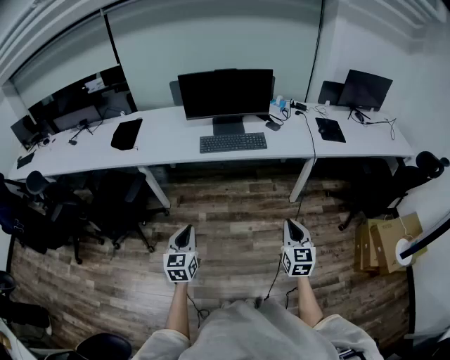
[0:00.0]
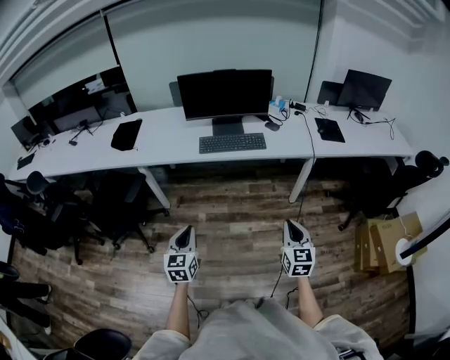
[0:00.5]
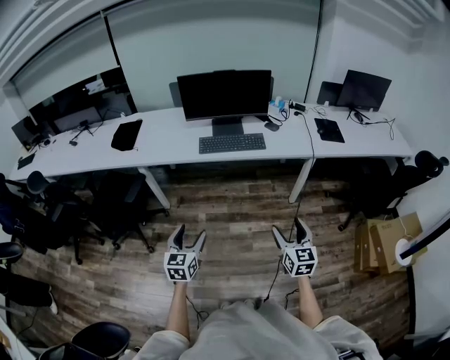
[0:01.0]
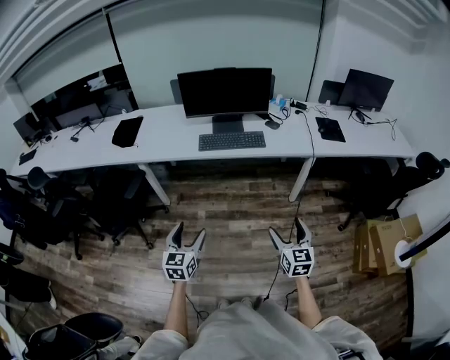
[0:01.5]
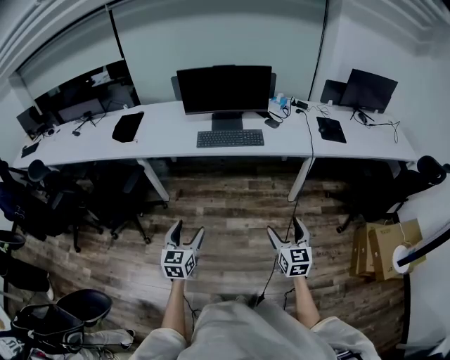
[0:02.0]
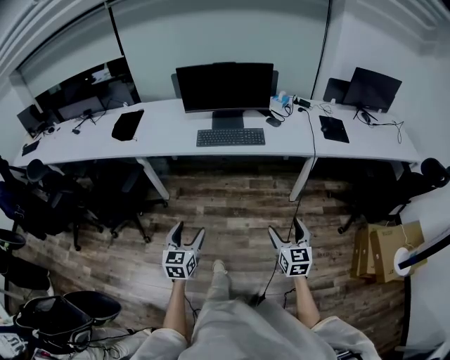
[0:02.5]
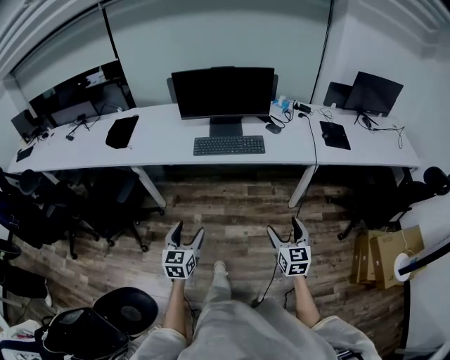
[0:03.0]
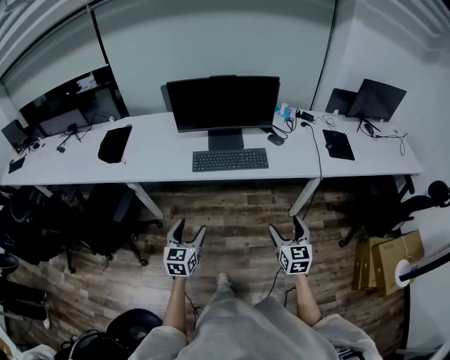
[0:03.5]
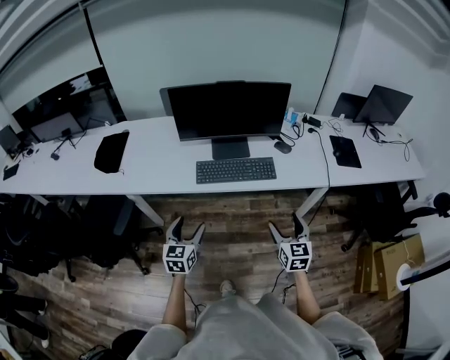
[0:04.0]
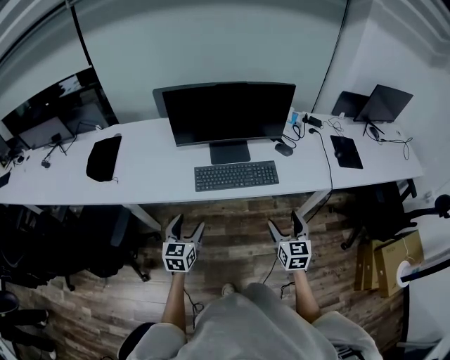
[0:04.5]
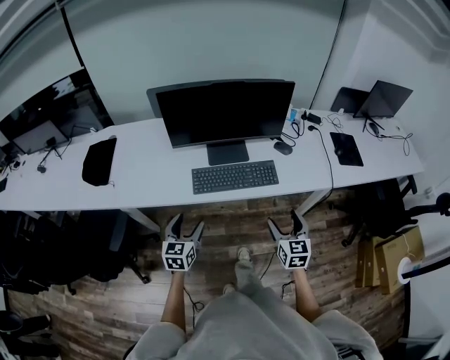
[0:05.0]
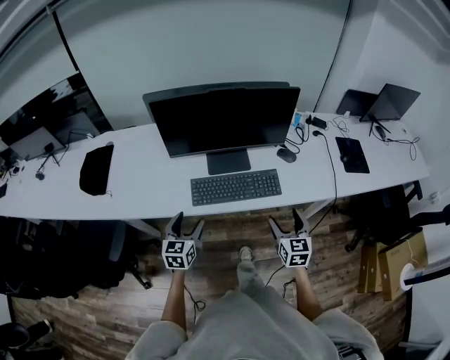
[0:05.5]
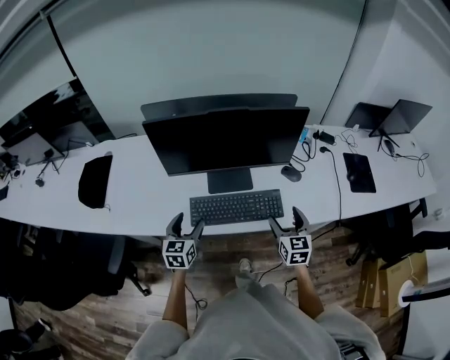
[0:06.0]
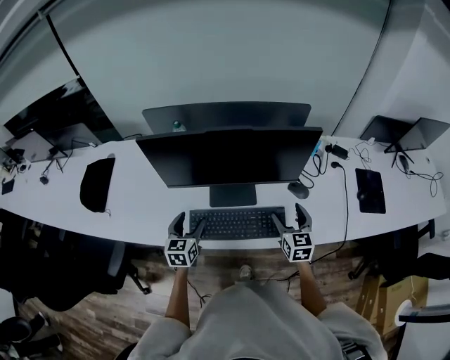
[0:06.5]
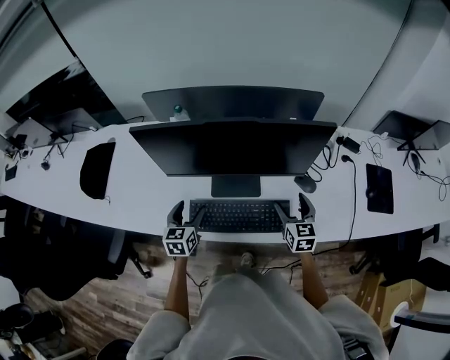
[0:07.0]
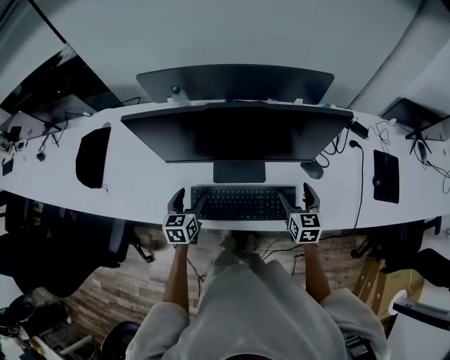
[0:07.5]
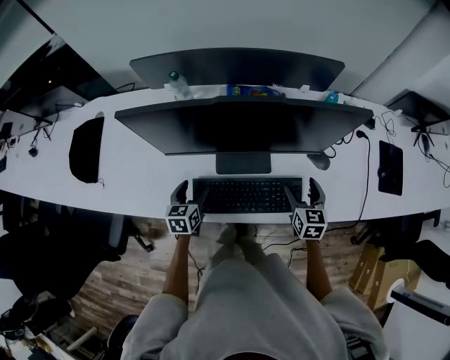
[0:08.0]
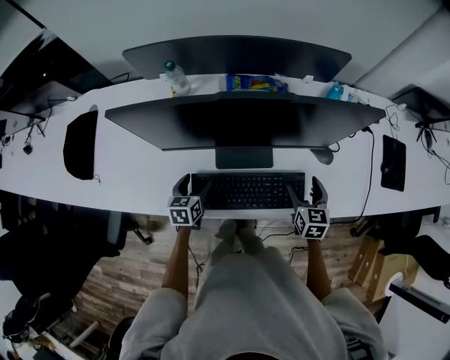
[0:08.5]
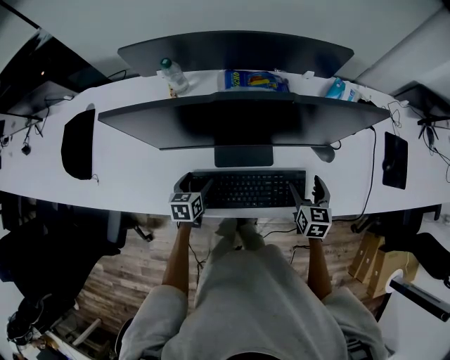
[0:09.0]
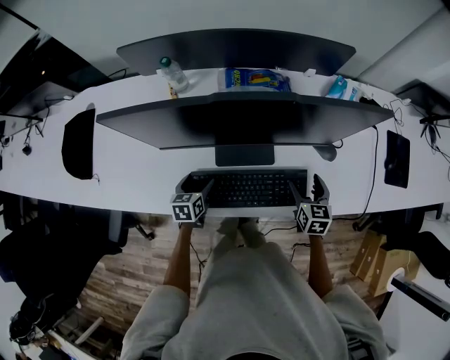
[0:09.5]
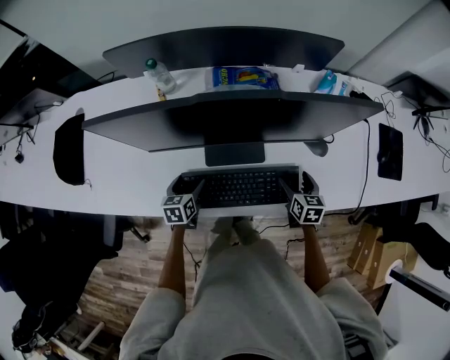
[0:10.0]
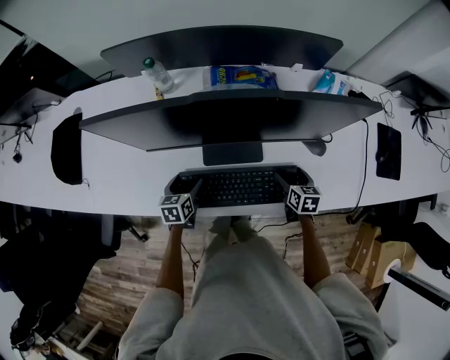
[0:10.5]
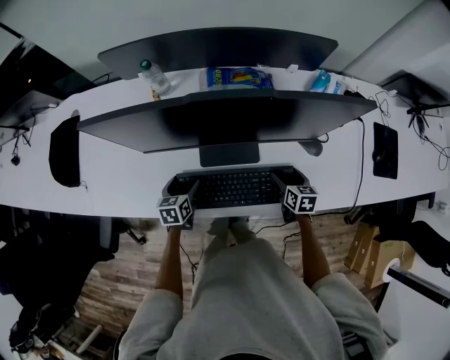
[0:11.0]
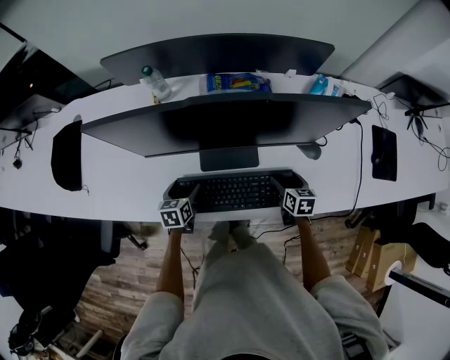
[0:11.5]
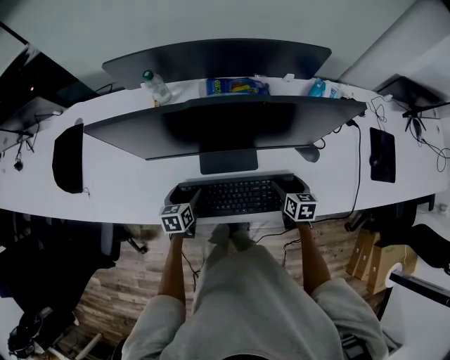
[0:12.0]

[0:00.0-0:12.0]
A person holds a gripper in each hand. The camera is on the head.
0:00.0 to 0:02.0: The left gripper is displaced to the right by approximately 5 cm, and opens up. The right gripper opens its fingers.
0:02.0 to 0:04.0: The two grippers go about 30 cm forward.
0:04.0 to 0:06.0: Both grippers move forward, approximately 30 cm.
0:06.0 to 0:08.0: The two grippers go about 15 cm forward and downward.
0:08.0 to 0:10.0: The grippers both shift downward by roughly 10 cm.
0:10.0 to 0:12.0: The grippers stay close to where they were, moving slightly.

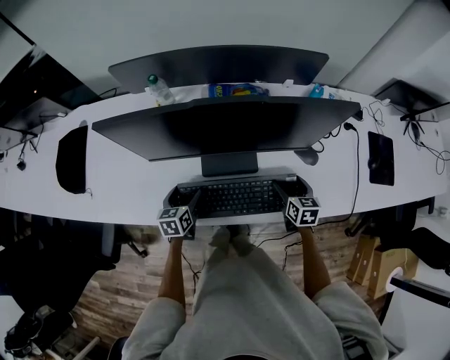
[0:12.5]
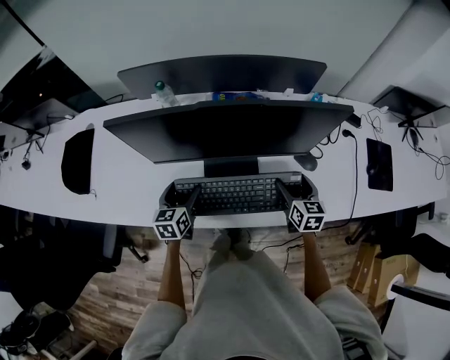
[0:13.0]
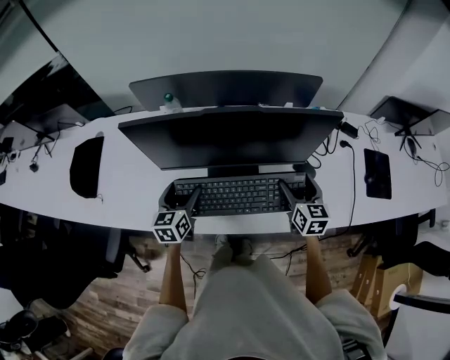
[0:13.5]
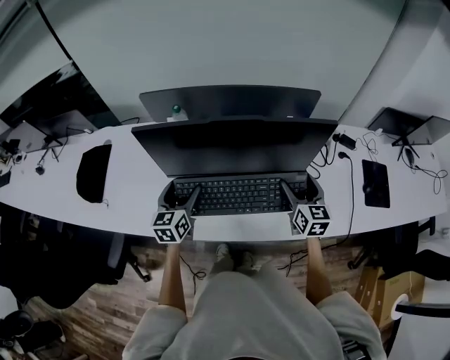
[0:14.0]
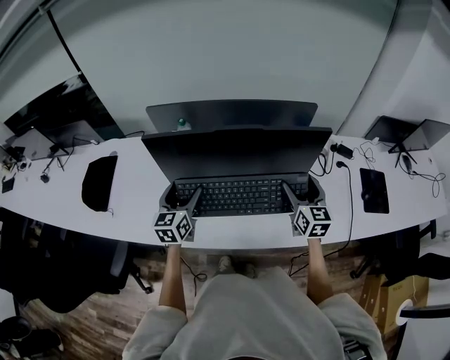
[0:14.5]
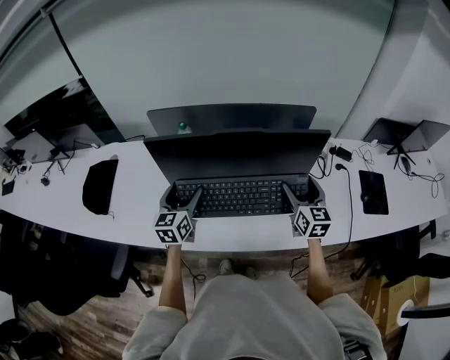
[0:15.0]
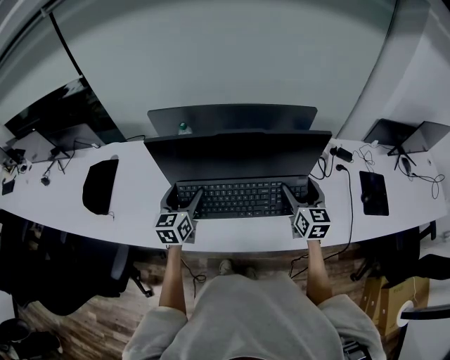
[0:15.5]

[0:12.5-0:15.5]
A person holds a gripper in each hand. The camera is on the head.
0:12.5 to 0:14.0: Both grippers move upward, roughly 20 cm. The right gripper rotates approximately 20 degrees. The left gripper changes its angle by about 20 degrees.
0:14.0 to 0:15.5: The grippers move only a little.

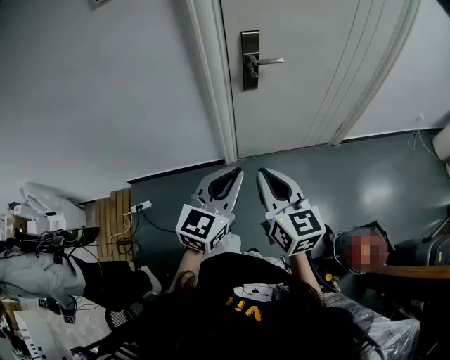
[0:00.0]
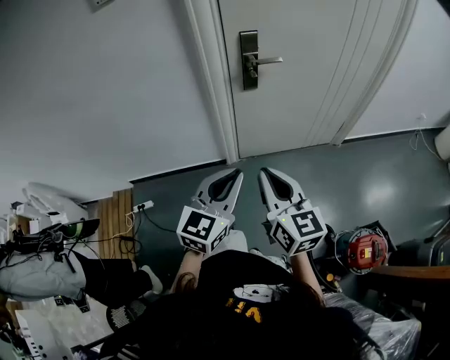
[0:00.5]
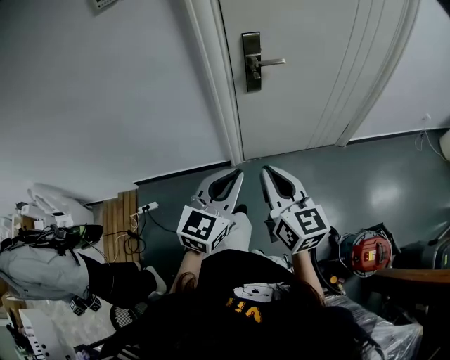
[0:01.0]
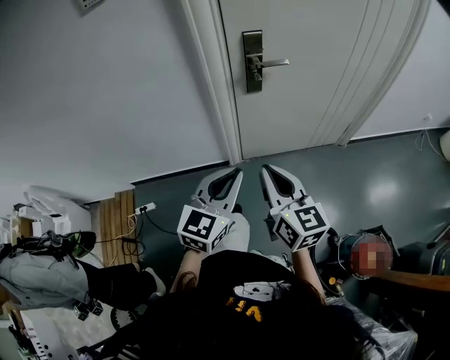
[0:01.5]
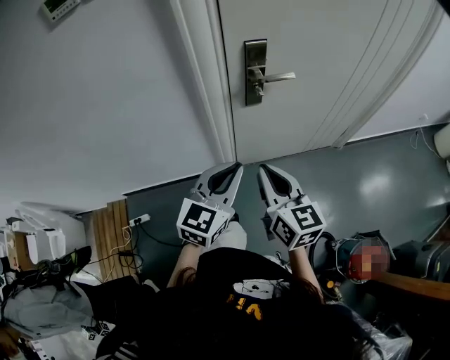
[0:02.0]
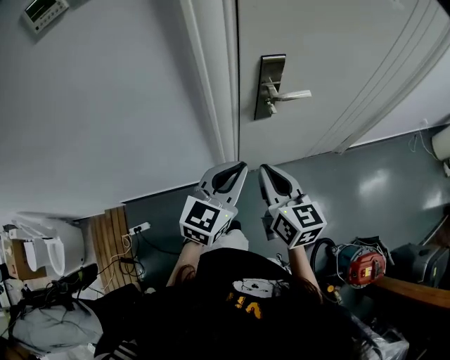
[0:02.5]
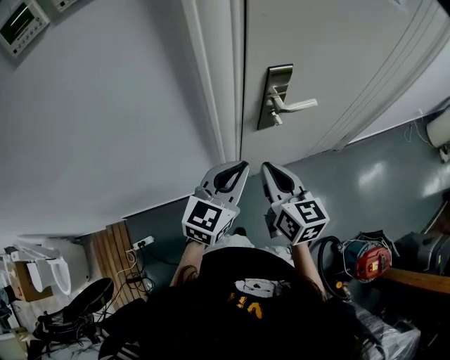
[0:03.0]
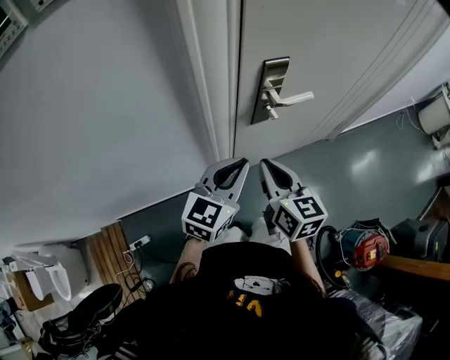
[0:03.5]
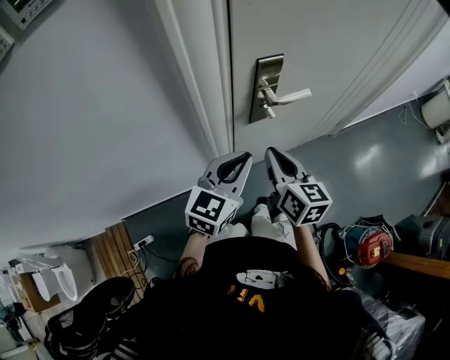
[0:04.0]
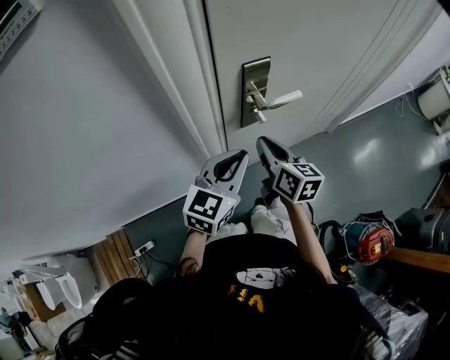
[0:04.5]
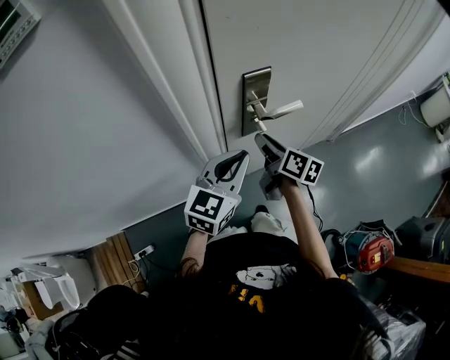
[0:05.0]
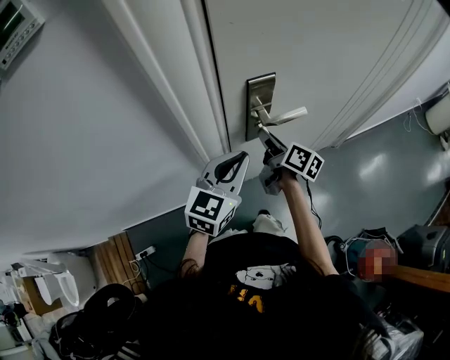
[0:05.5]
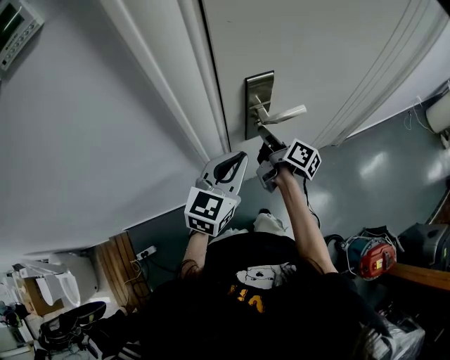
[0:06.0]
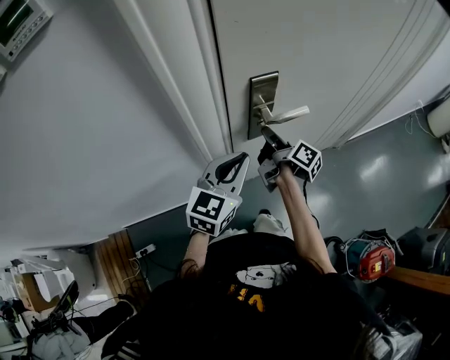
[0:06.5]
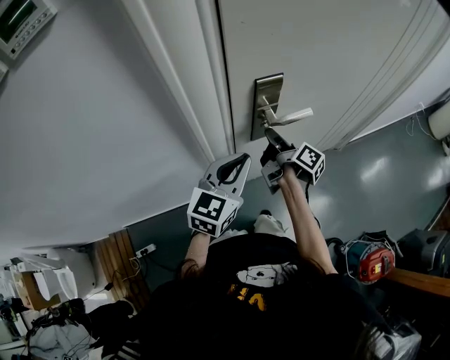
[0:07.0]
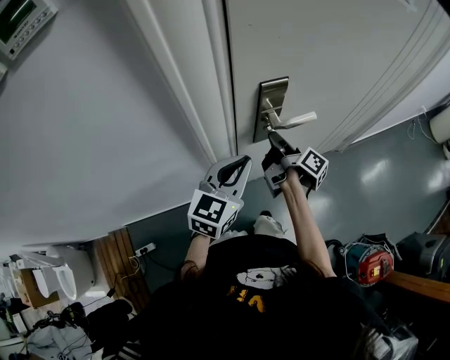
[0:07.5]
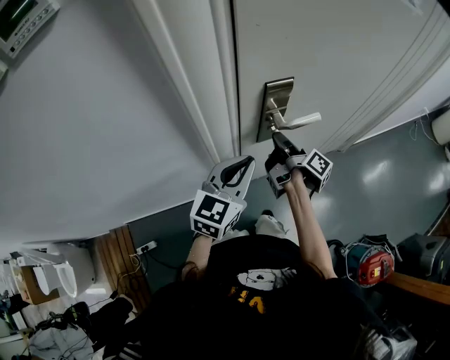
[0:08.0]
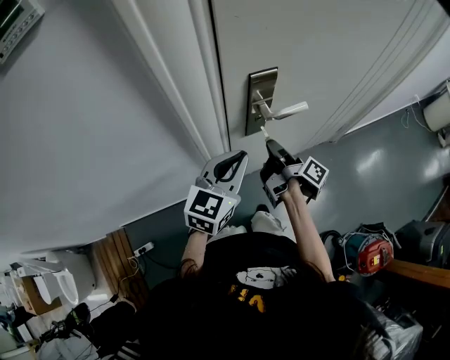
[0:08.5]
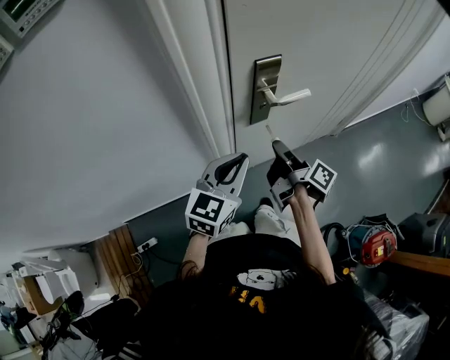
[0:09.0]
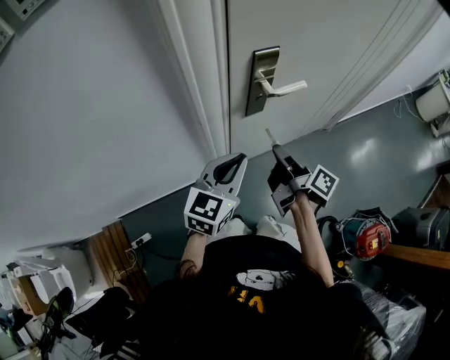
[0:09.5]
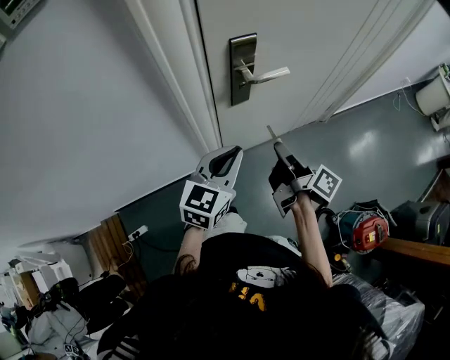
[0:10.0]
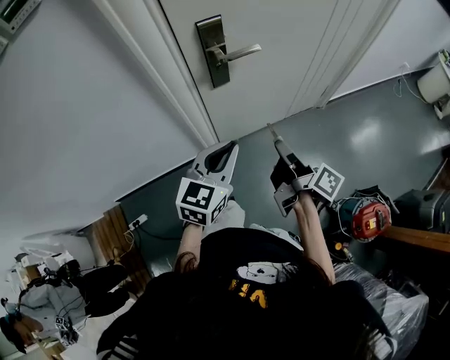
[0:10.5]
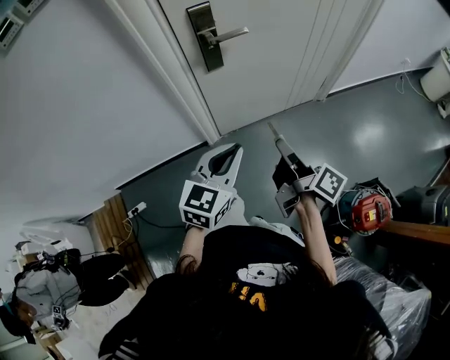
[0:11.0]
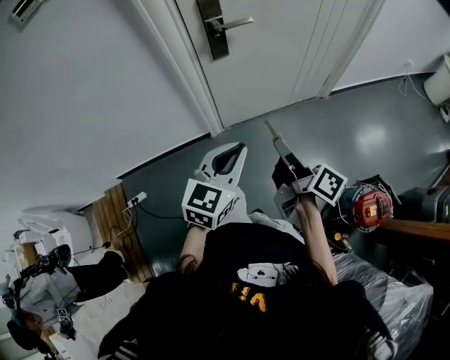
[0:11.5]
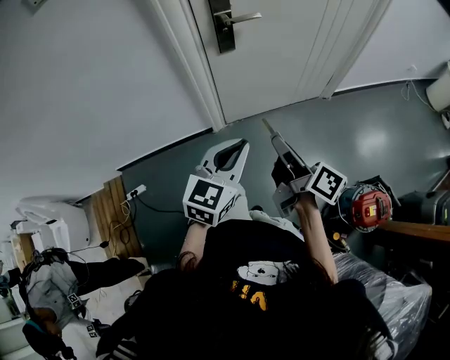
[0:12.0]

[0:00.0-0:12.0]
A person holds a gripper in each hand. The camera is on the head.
0:00.0 to 0:02.0: Both grippers move forward, some 15 cm.
0:02.0 to 0:04.0: Both grippers travel together forward, some 15 cm.
0:04.0 to 0:06.0: The right gripper moves forward and downward, some 15 cm, and rotates around the line of its fingers by roughly 50 degrees, clockwise from behind; the left gripper heads forward, covering some 5 cm.
0:06.0 to 0:08.0: The right gripper swivels some 20 degrees.
0:08.0 to 0:10.0: The right gripper moves backward and to the right, roughly 20 cm. Meanwhile the left gripper heads backward, covering roughly 10 cm.
0:10.0 to 0:12.0: The right gripper travels backward by about 25 cm. The left gripper goes approximately 25 cm backward and to the right.
